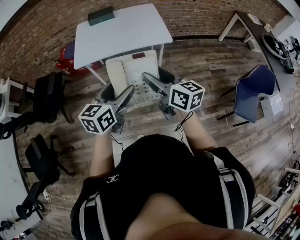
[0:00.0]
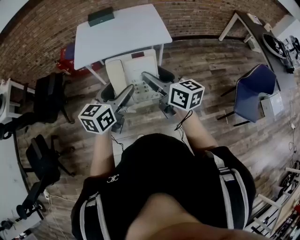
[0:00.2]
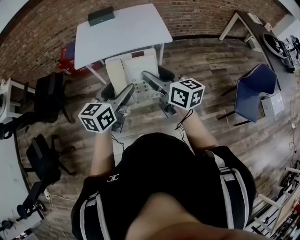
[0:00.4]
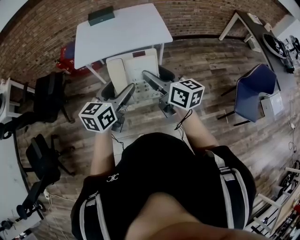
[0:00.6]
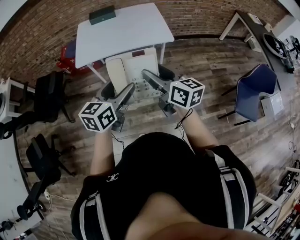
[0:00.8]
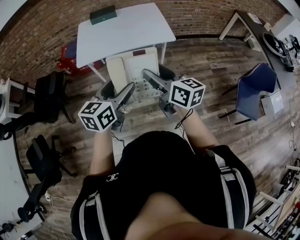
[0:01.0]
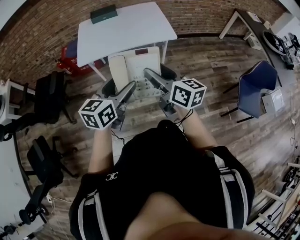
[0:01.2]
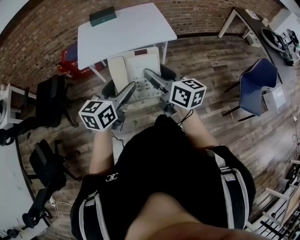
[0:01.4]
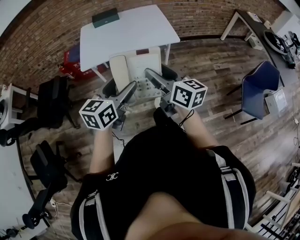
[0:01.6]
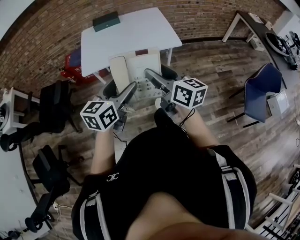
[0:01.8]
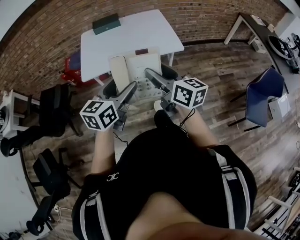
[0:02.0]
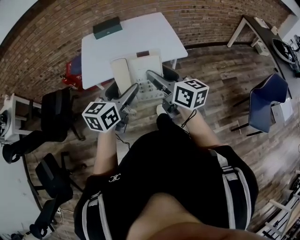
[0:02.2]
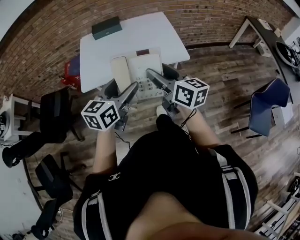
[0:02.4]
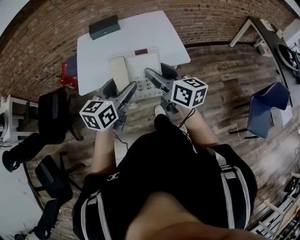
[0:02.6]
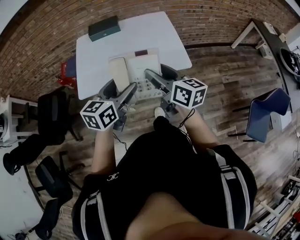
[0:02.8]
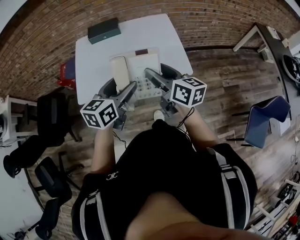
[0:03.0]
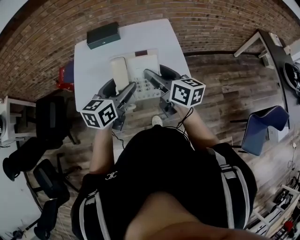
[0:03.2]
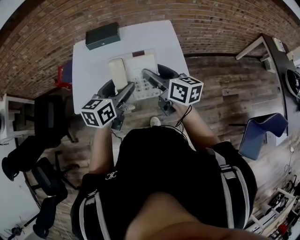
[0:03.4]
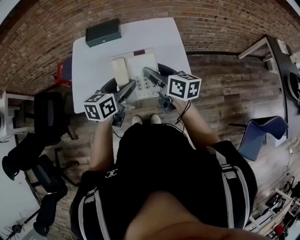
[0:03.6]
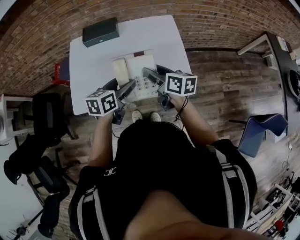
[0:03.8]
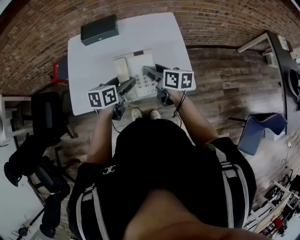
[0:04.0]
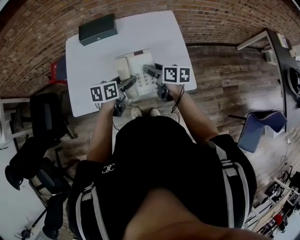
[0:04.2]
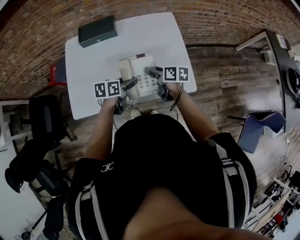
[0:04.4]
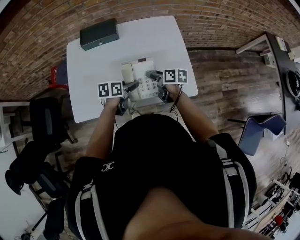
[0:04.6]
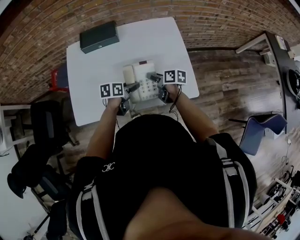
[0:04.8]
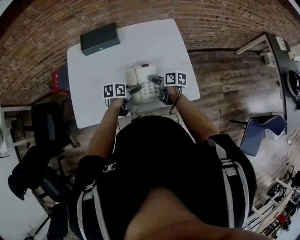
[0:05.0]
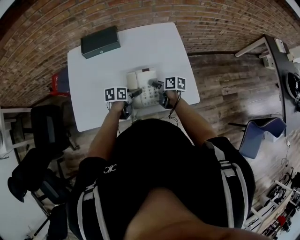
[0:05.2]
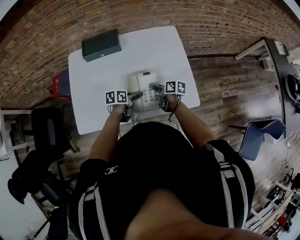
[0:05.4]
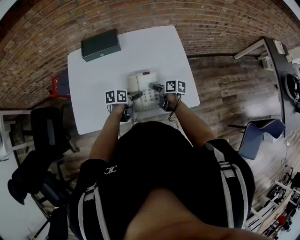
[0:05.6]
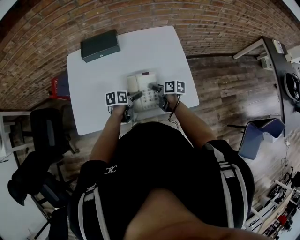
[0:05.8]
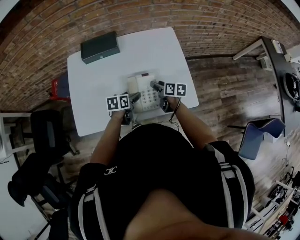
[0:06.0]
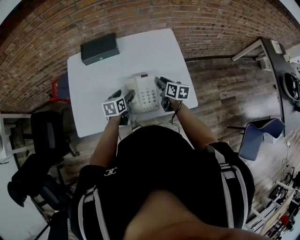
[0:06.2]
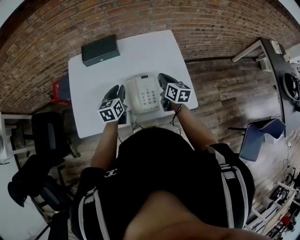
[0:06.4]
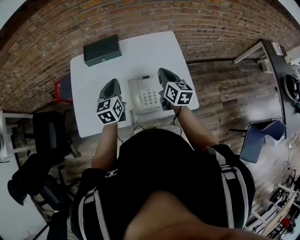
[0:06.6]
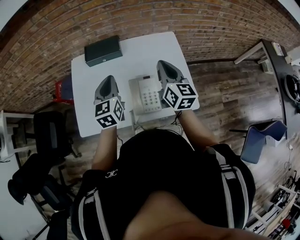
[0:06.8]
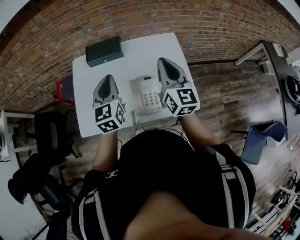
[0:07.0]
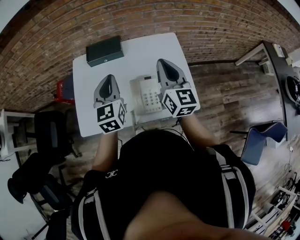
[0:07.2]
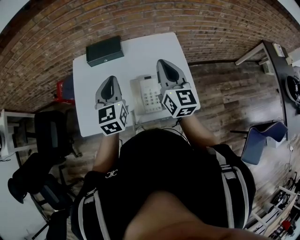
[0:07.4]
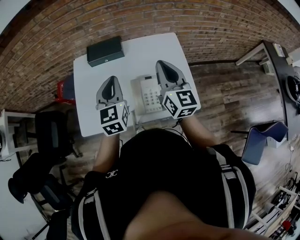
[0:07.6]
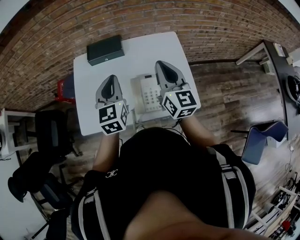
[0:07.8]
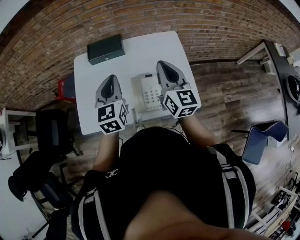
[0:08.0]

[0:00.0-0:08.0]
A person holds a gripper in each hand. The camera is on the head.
0:00.0 to 0:01.6: The grippers both shift to the left by about 5 cm.
0:01.6 to 0:03.2: Both grippers travel together forward, approximately 40 cm.
0:03.2 to 0:04.8: The grippers both shift downward and forward by approximately 30 cm. The right gripper changes its angle by about 30 degrees, while the left gripper rotates about 40 degrees.
0:04.8 to 0:06.4: The right gripper moves upward, roughly 10 cm, turns by approximately 30 degrees, and closes up. The left gripper travels upward and to the left by about 10 cm, changes its angle by about 40 degrees, and closes its fingers.
0:06.4 to 0:08.0: The two grippers go some 20 cm upward. The right gripper rotates approximately 30 degrees, while the left gripper turns by approximately 20 degrees.

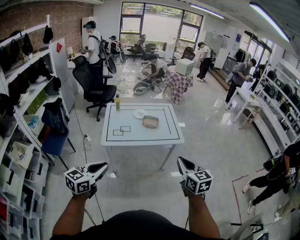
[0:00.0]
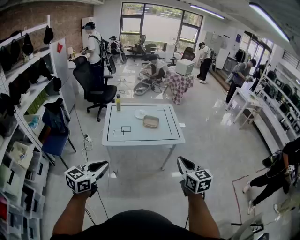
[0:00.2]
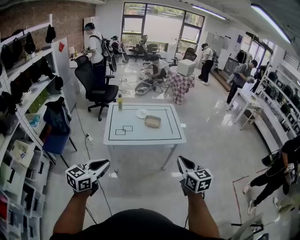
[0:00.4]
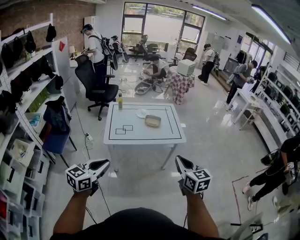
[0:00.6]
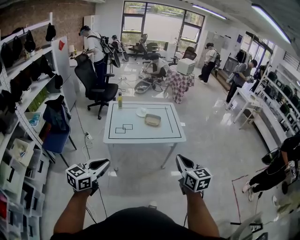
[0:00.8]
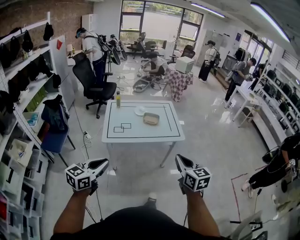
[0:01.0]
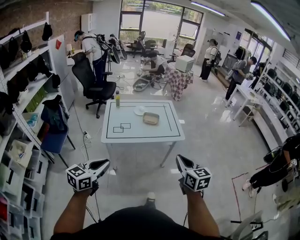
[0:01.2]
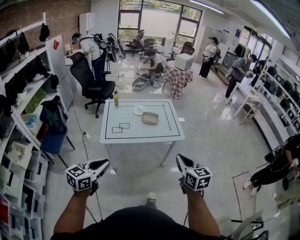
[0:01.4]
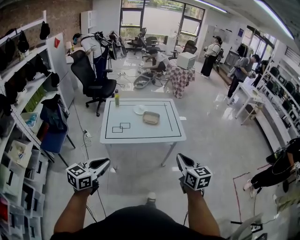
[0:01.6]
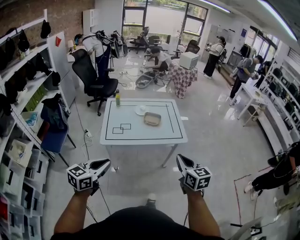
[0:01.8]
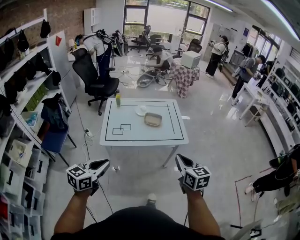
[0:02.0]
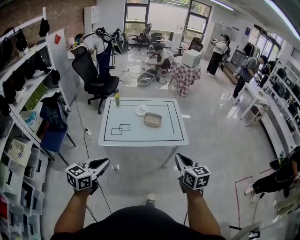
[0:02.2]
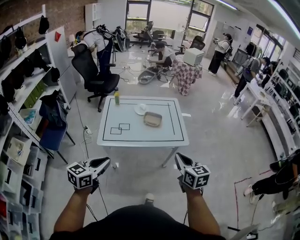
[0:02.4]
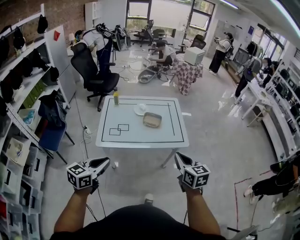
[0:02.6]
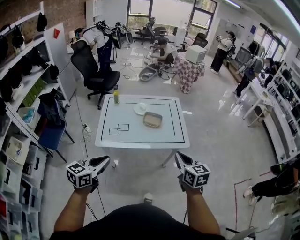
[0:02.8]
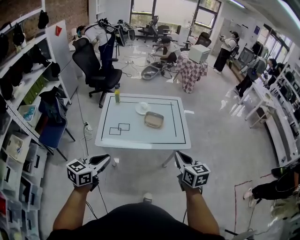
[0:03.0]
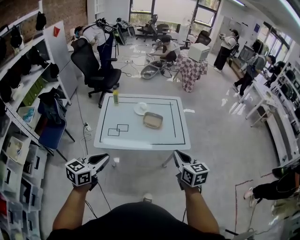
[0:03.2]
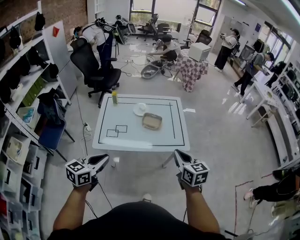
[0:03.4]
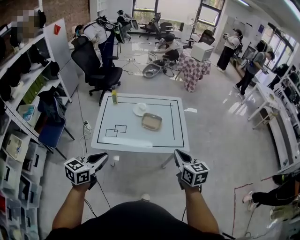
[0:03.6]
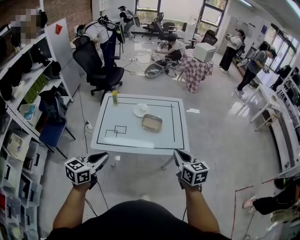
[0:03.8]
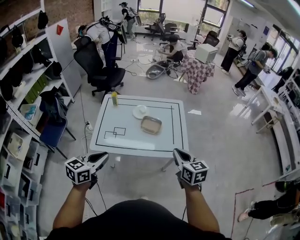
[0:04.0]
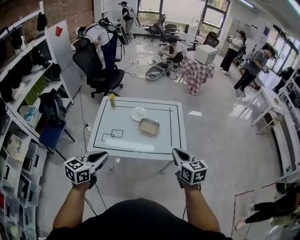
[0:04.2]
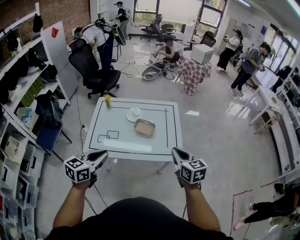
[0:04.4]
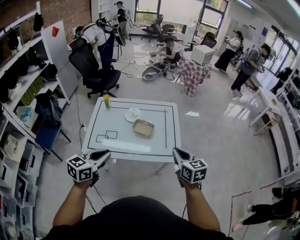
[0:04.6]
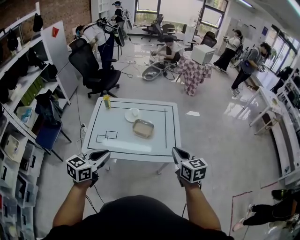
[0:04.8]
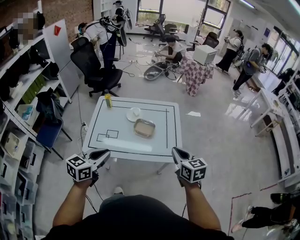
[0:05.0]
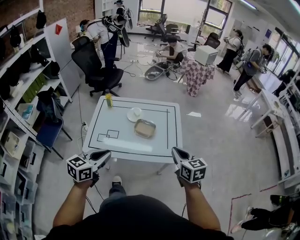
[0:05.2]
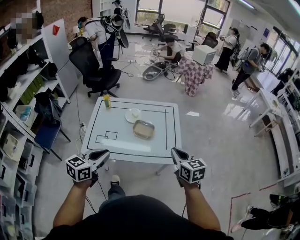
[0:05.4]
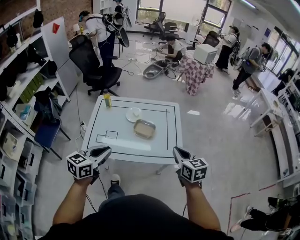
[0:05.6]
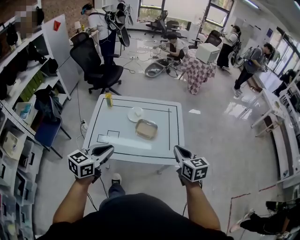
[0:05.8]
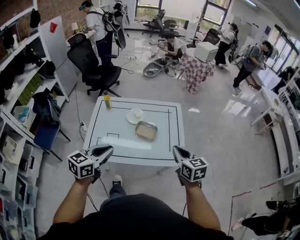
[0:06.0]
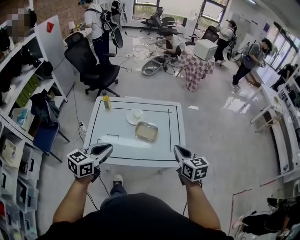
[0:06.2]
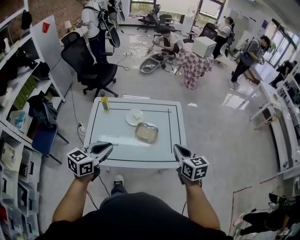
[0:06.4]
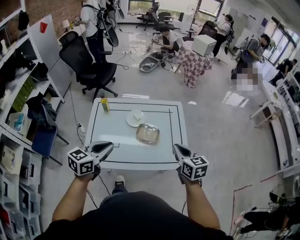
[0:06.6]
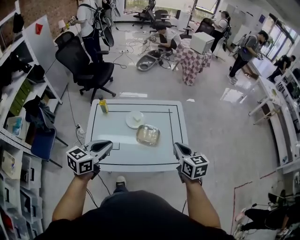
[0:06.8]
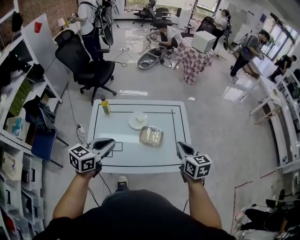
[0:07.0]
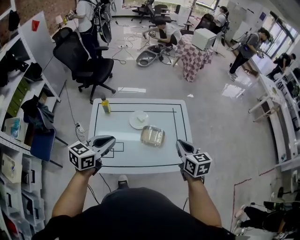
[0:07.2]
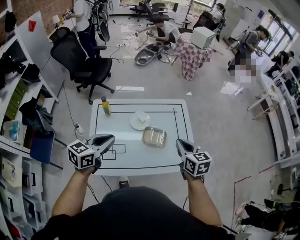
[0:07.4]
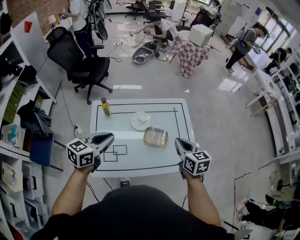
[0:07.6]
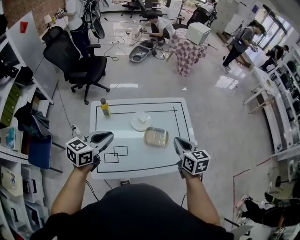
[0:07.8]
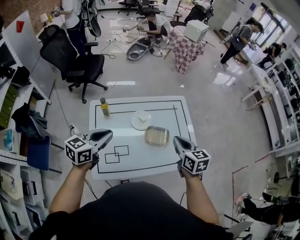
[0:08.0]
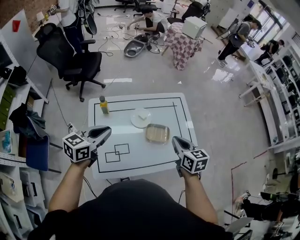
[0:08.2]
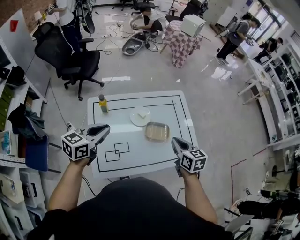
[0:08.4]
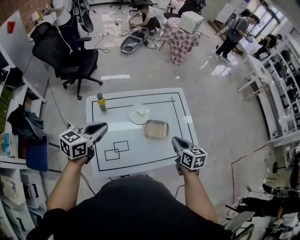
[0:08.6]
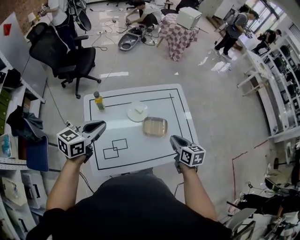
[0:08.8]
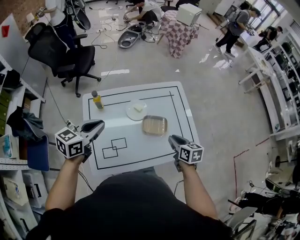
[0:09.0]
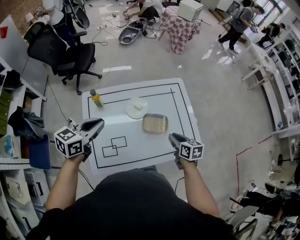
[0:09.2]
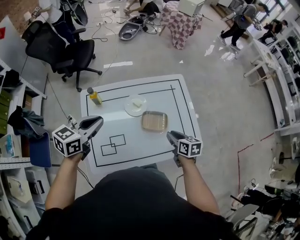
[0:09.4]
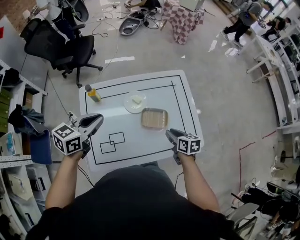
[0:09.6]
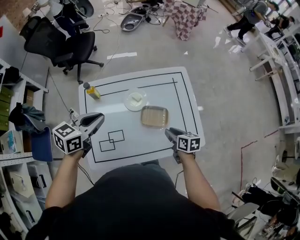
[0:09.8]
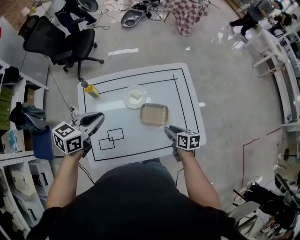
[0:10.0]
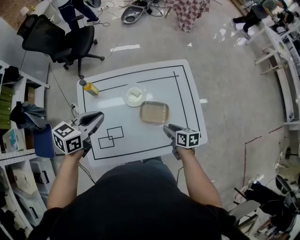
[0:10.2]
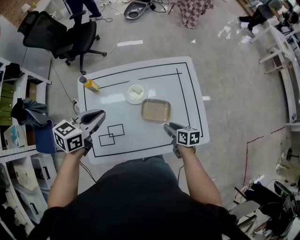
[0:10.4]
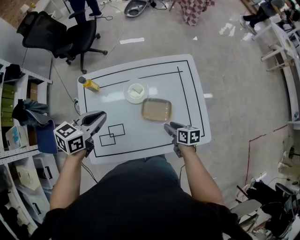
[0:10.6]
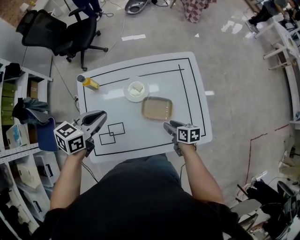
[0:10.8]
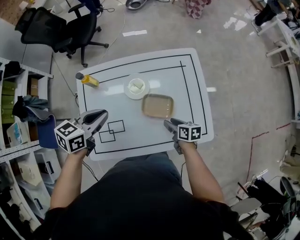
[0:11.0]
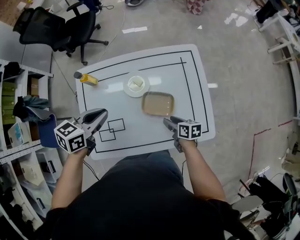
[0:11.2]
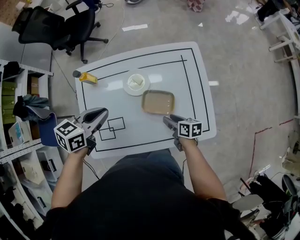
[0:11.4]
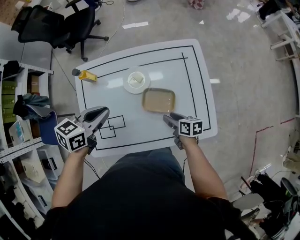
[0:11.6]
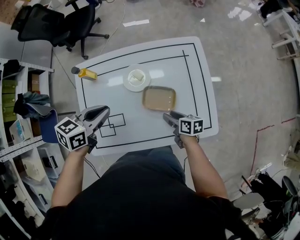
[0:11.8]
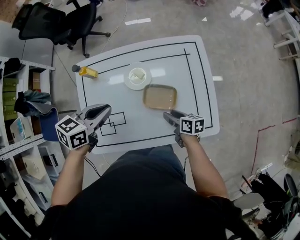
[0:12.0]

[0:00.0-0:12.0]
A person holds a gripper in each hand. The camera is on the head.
0:00.0 to 0:01.6: The two grippers go some 5 cm forward.
0:01.6 to 0:03.0: Both grippers travel together forward, some 20 cm.
0:03.0 to 0:04.4: The grippers both shift forward and to the right by roughly 20 cm.
0:04.4 to 0:06.0: The two grippers go approximately 10 cm forward.
0:06.0 to 0:07.6: The grippers both shift forward and to the left by approximately 25 cm.
0:07.6 to 0:09.0: The left gripper travels to the left and forward by about 10 cm; the right gripper goes roughly 15 cm downward.
0:09.0 to 0:10.4: The right gripper shifts some 15 cm downward. The left gripper moves to the right, downward and forward, roughly 15 cm.
0:10.4 to 0:12.0: Both grippers travel together downward, roughly 5 cm.

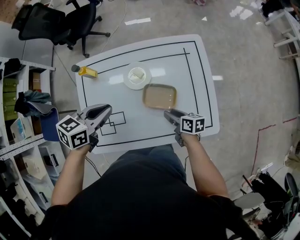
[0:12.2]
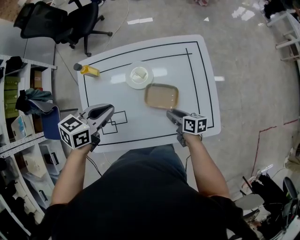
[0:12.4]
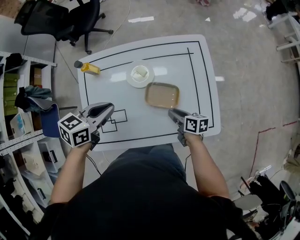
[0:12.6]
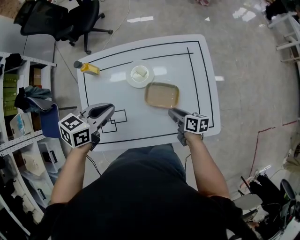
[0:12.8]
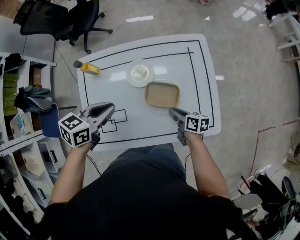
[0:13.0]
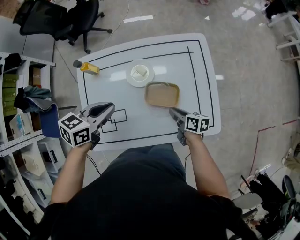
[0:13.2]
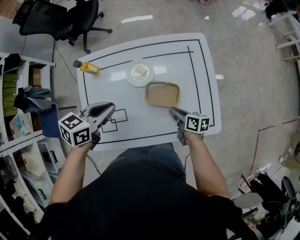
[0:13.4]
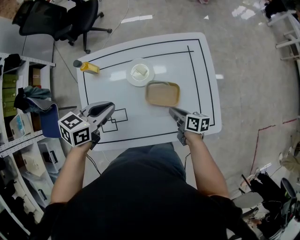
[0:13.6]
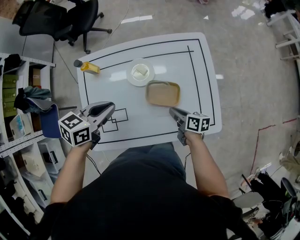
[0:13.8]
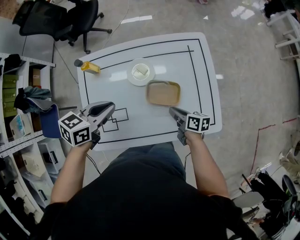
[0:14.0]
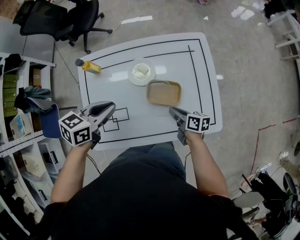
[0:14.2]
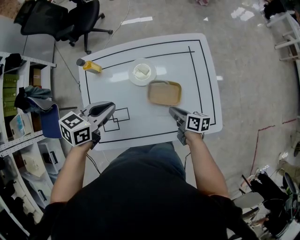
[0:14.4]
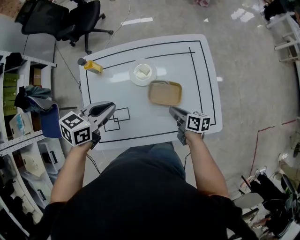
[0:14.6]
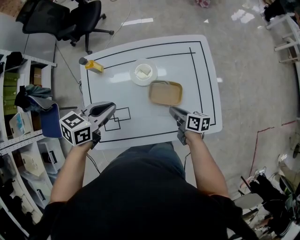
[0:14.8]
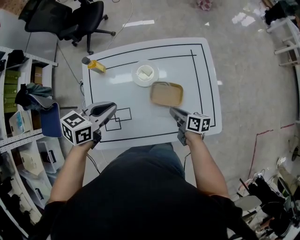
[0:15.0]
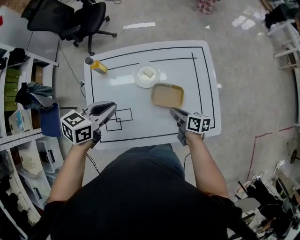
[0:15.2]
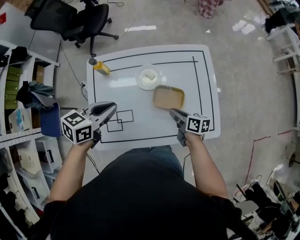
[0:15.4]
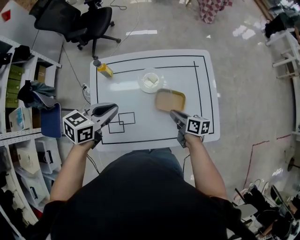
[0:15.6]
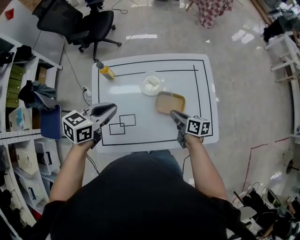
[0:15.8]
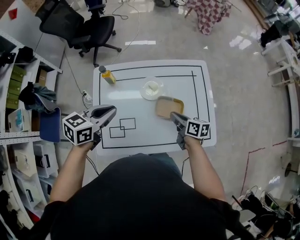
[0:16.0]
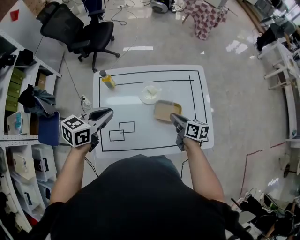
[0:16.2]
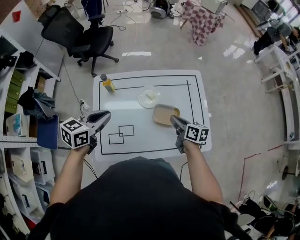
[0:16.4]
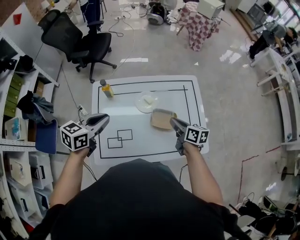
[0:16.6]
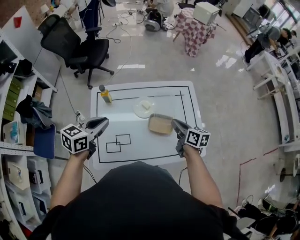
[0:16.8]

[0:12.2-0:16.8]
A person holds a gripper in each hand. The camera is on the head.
0:12.2 to 0:13.8: The right gripper closes its fingers.
0:13.8 to 0:15.2: The grippers move only a little.
0:15.2 to 0:16.8: The left gripper heads upward and to the left, covering about 15 cm. The right gripper goes about 20 cm upward.
